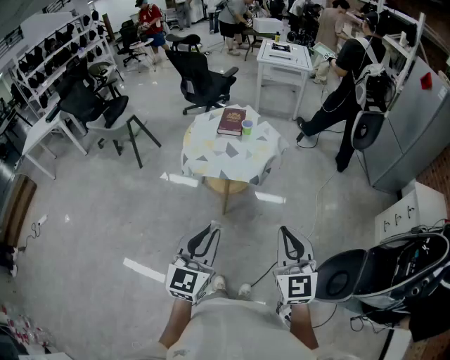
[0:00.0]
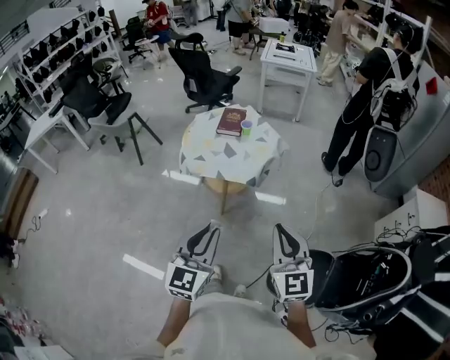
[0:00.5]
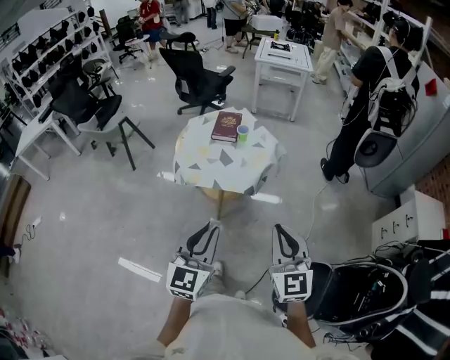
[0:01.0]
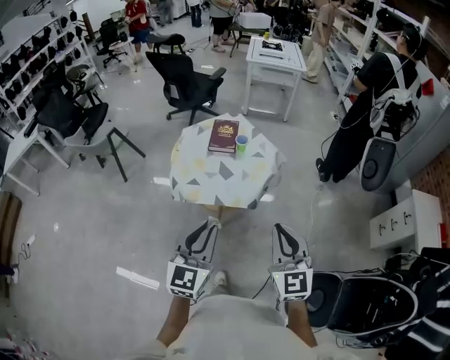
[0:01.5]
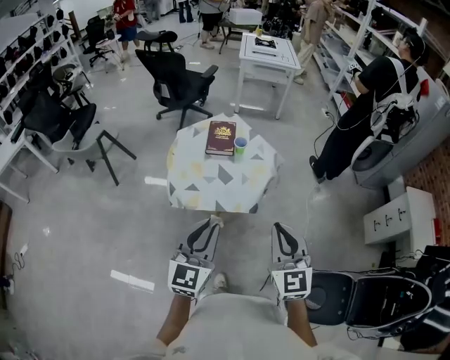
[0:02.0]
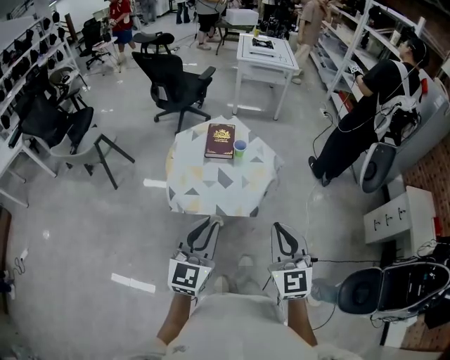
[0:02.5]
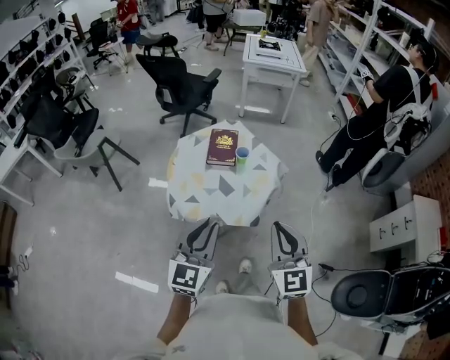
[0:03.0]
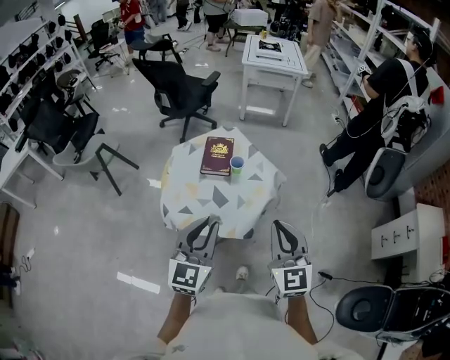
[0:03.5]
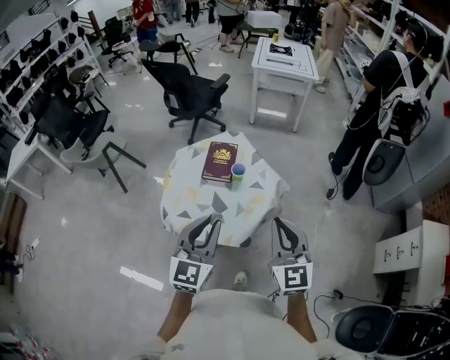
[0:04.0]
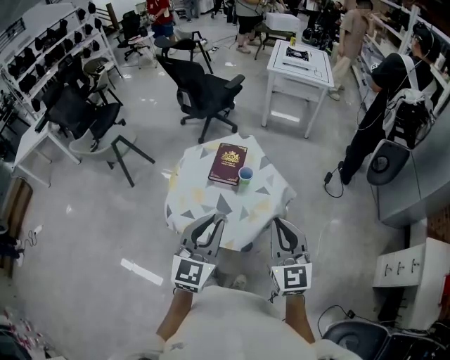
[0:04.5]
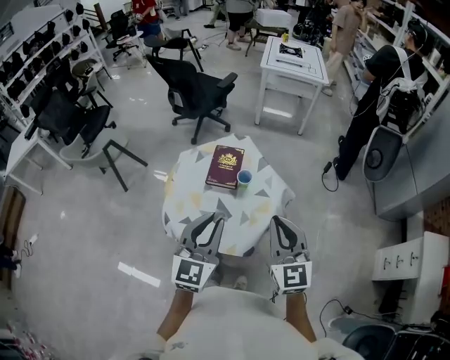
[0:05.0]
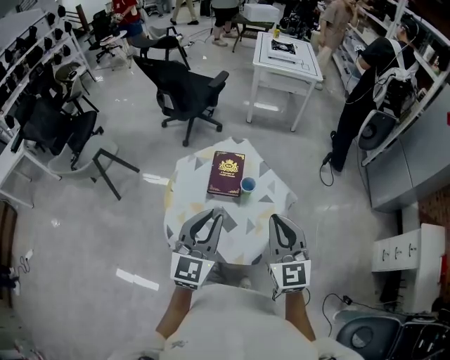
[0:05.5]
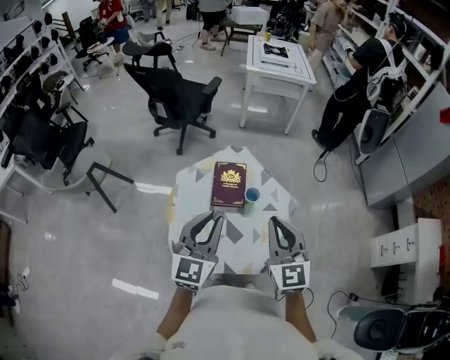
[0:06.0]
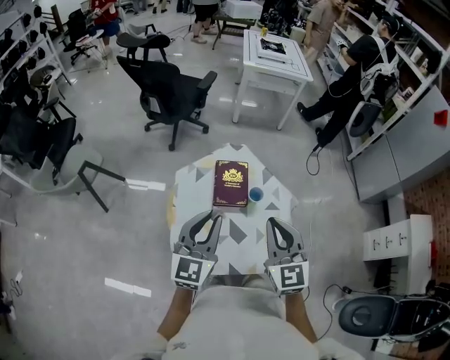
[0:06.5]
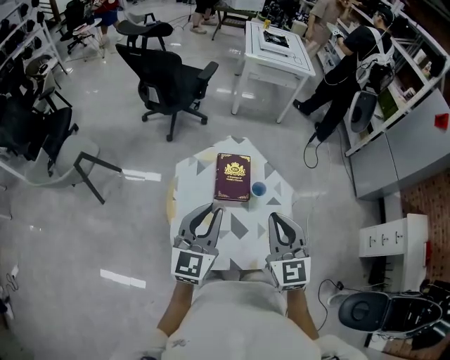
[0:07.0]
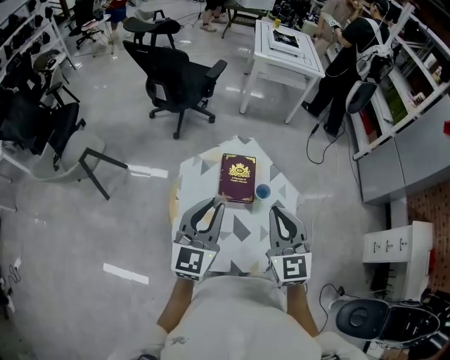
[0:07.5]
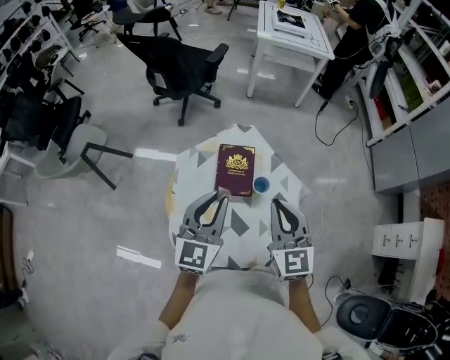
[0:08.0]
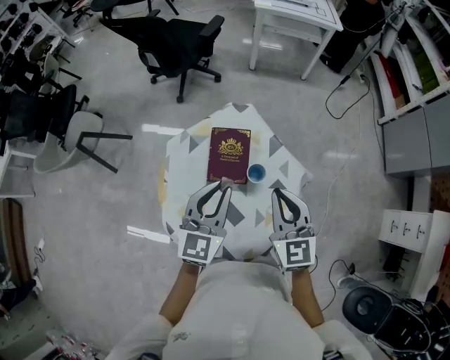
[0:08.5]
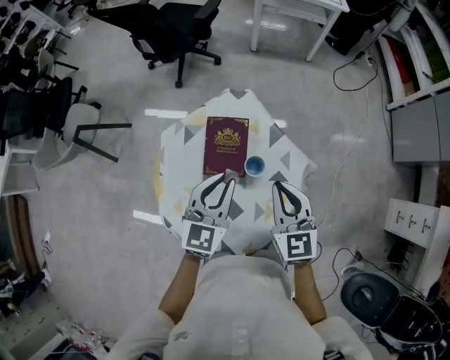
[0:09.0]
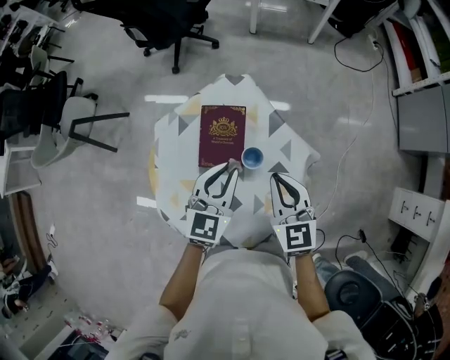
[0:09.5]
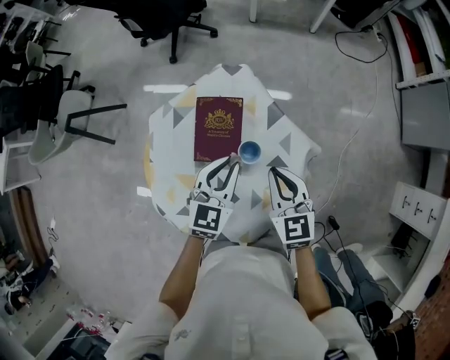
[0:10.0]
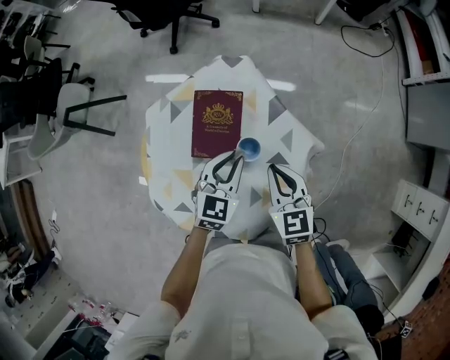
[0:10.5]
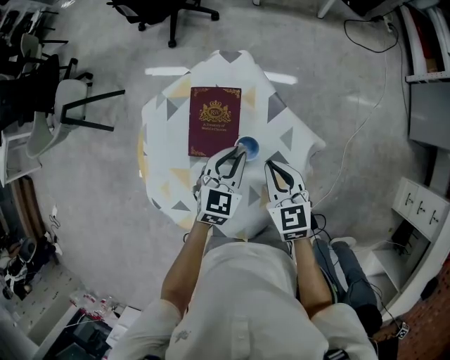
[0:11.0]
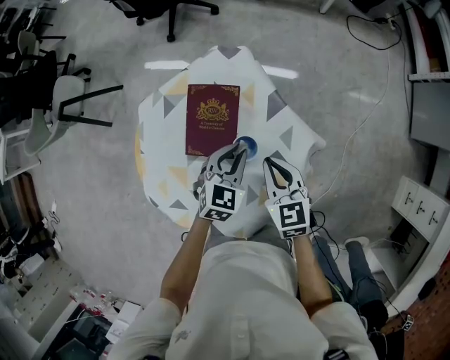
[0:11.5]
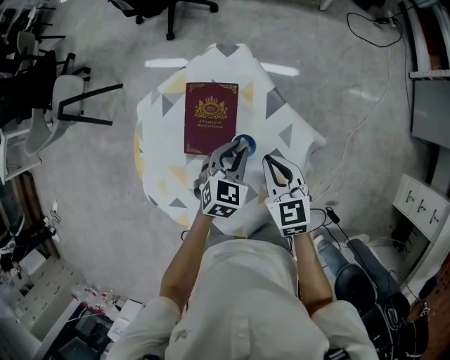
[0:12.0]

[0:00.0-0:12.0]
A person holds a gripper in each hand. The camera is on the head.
0:00.0 to 0:02.0: The right gripper is displaced forward and to the left by about 25 cm, while the left gripper heads forward, covering about 25 cm.
0:02.0 to 0:04.0: The right gripper travels forward by roughly 20 cm. Meanwhile the left gripper heads forward and to the right, covering about 20 cm.
0:04.0 to 0:06.0: Both grippers move forward and to the left, about 20 cm.
0:06.0 to 0:08.0: The two grippers go approximately 10 cm forward.
0:08.0 to 0:10.0: The right gripper travels downward and to the right by roughly 20 cm, and swivels approximately 20 degrees, while the left gripper moves downward, to the right and forward, about 20 cm, and changes its angle by some 20 degrees.
0:10.0 to 0:12.0: The left gripper heads downward, covering roughly 10 cm, and swivels about 20 degrees. The right gripper goes about 5 cm downward.

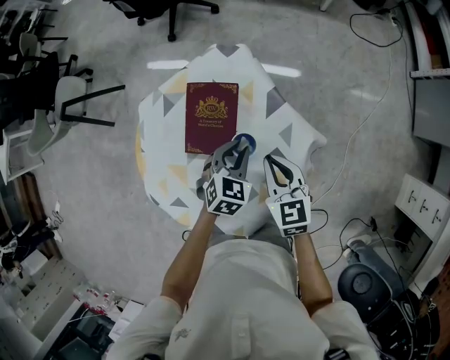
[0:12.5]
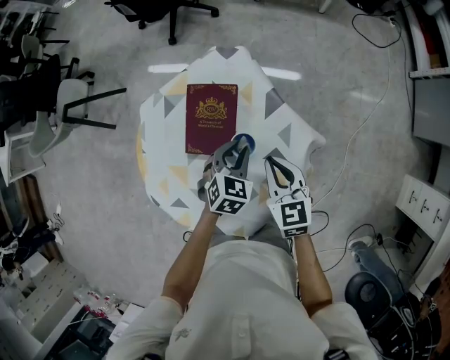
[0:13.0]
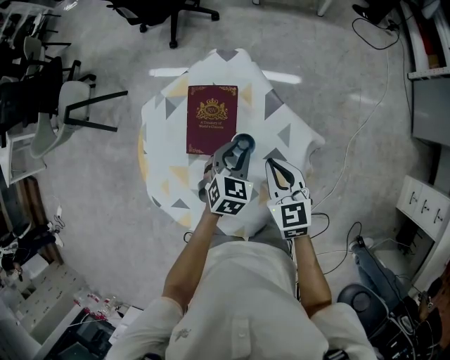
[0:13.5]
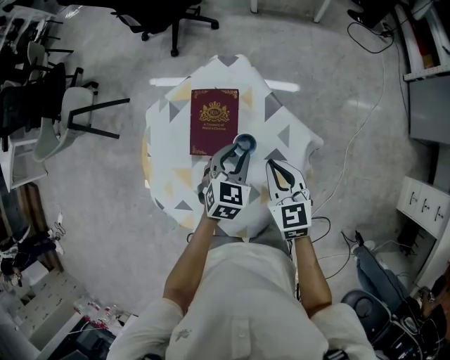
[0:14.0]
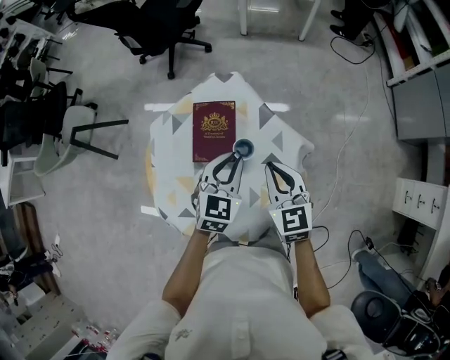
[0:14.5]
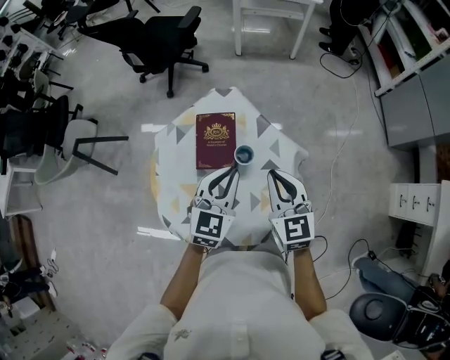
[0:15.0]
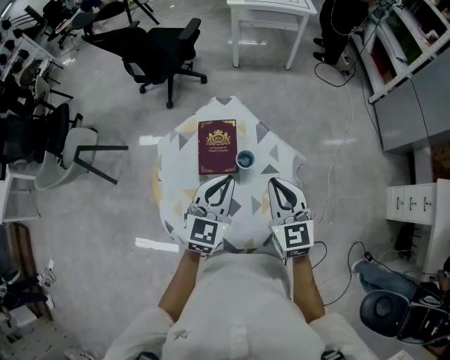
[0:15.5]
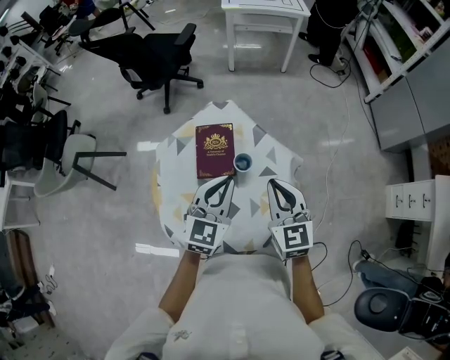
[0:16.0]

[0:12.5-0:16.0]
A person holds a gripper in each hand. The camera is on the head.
0:12.5 to 0:14.5: The grippers both shift upward by about 10 cm.
0:14.5 to 0:16.0: The right gripper heads upward, covering roughly 10 cm, while the left gripper travels upward and backward by about 10 cm.

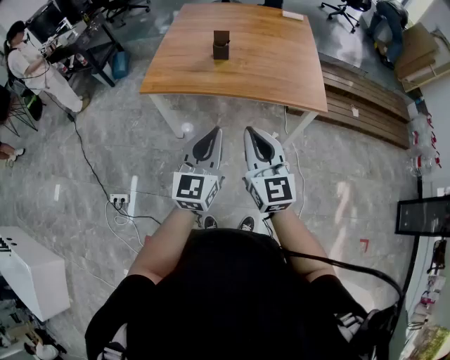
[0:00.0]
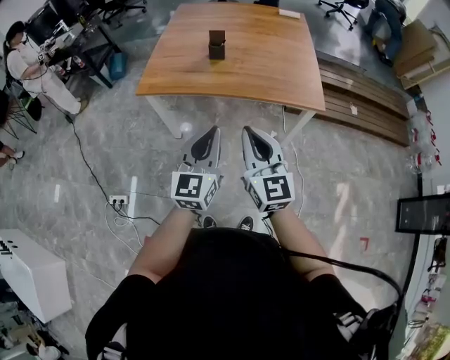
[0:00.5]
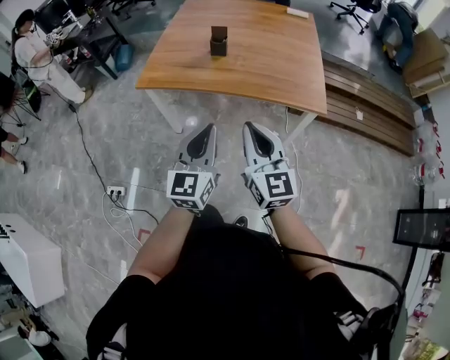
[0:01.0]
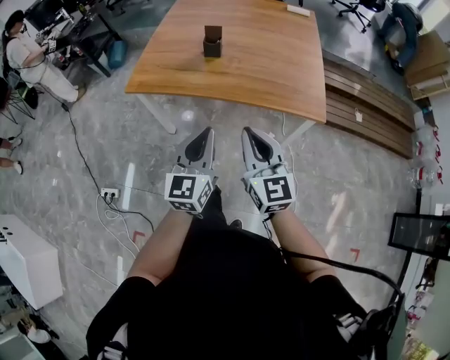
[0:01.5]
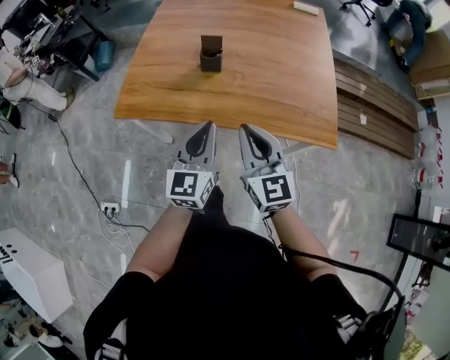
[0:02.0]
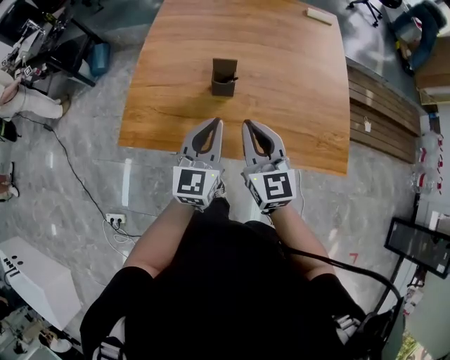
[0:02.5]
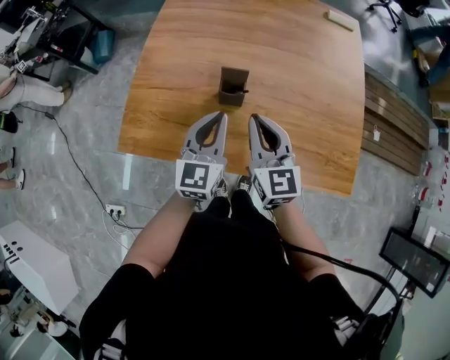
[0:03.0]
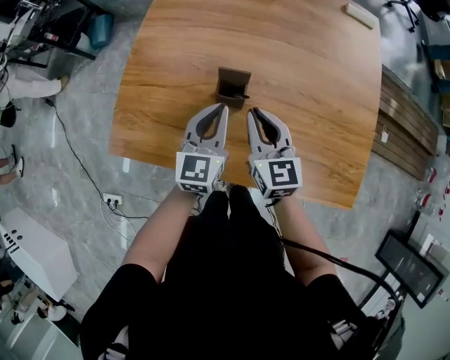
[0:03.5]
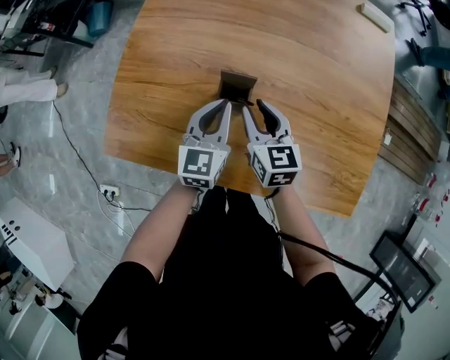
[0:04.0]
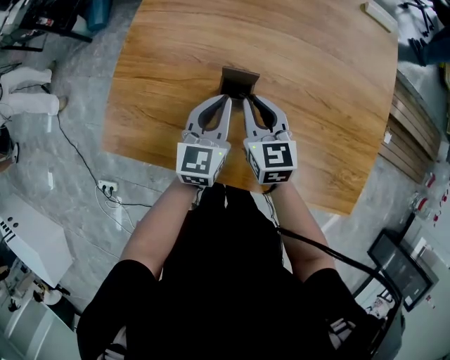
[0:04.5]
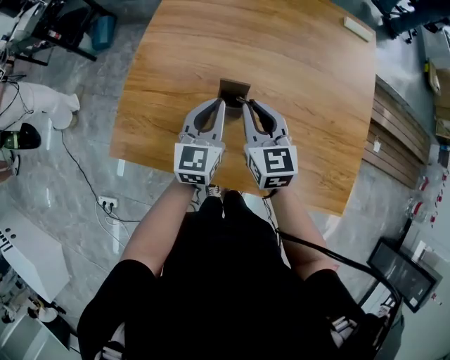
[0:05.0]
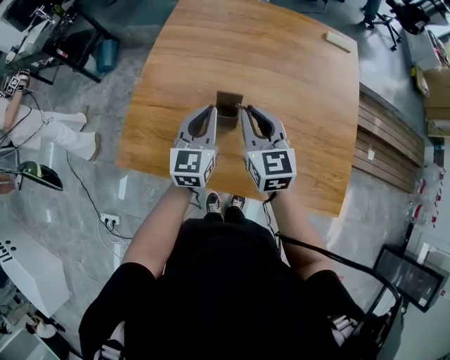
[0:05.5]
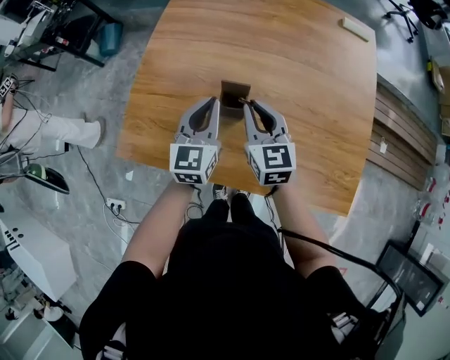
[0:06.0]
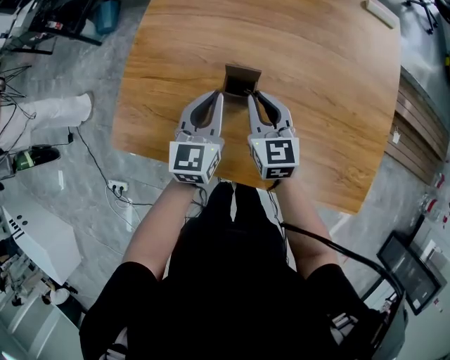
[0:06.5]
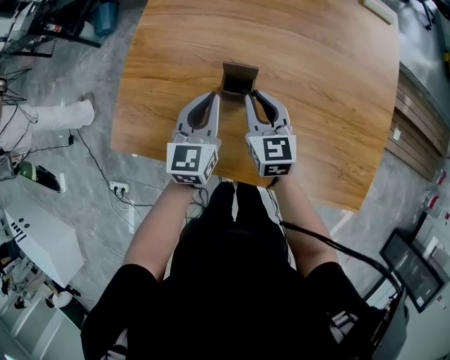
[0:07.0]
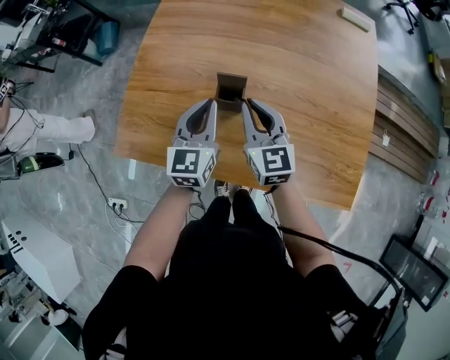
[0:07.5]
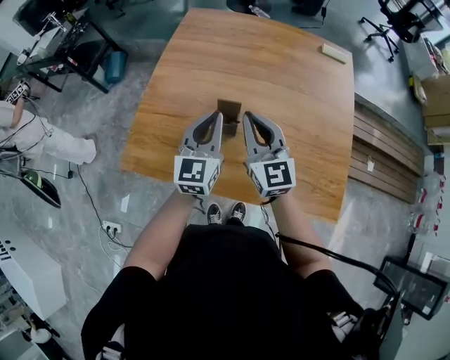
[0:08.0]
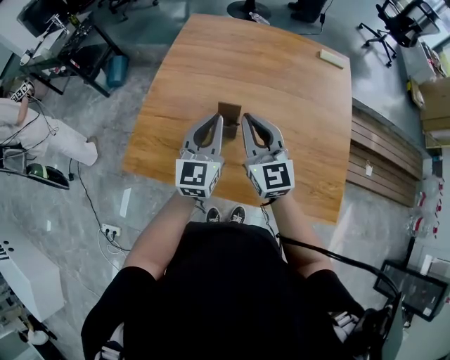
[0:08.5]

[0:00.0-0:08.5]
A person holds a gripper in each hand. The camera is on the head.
0:00.0 to 0:02.0: Both grippers move forward, about 30 cm.
0:02.0 to 0:04.0: Both grippers travel together forward and downward, some 40 cm. The right gripper turns by about 30 degrees.
0:04.0 to 0:06.5: The right gripper goes upward and returns, about 15 cm each way. The left gripper goes upward and returns, some 10 cm each way.
0:06.5 to 0:08.5: Both grippers travel together upward, about 20 cm. The right gripper rotates some 30 degrees.

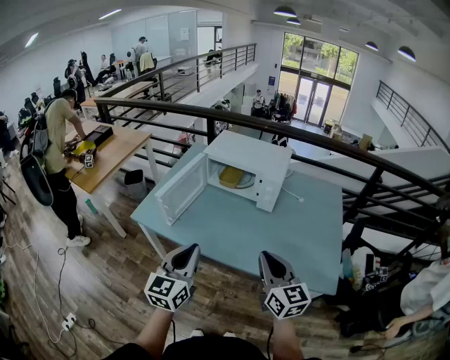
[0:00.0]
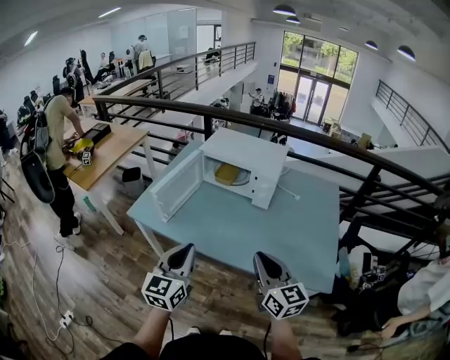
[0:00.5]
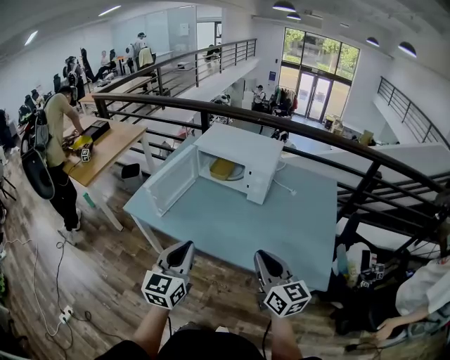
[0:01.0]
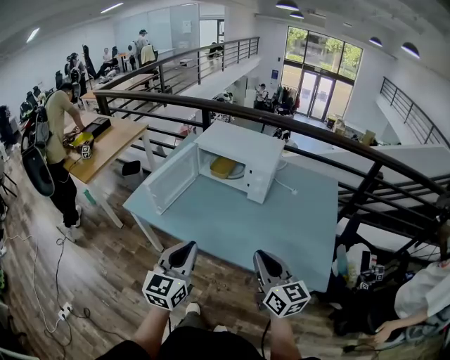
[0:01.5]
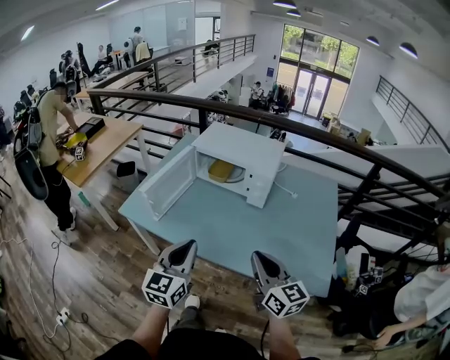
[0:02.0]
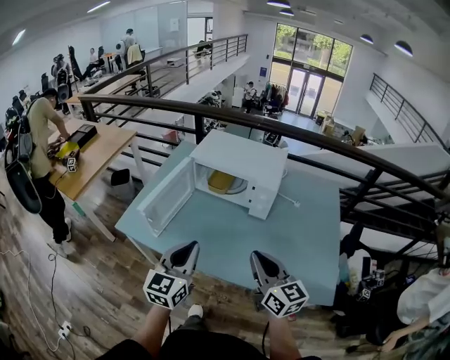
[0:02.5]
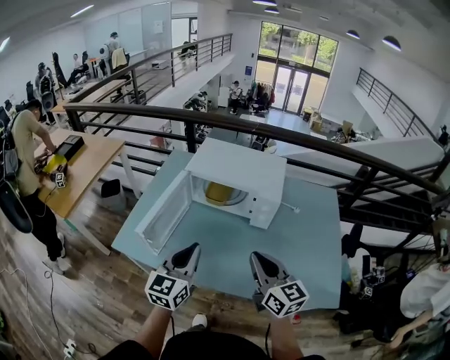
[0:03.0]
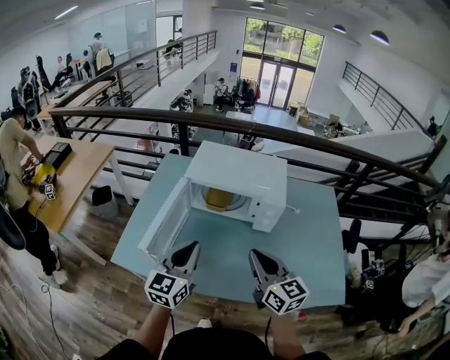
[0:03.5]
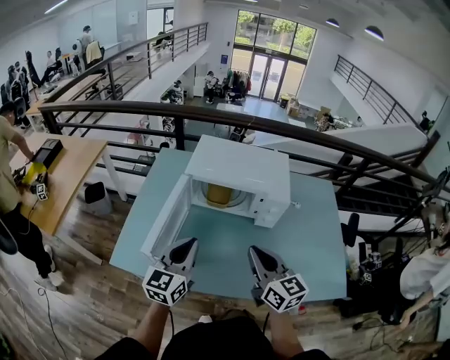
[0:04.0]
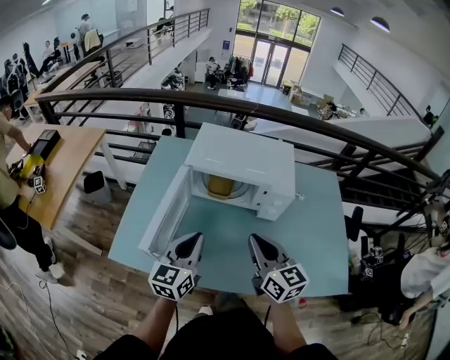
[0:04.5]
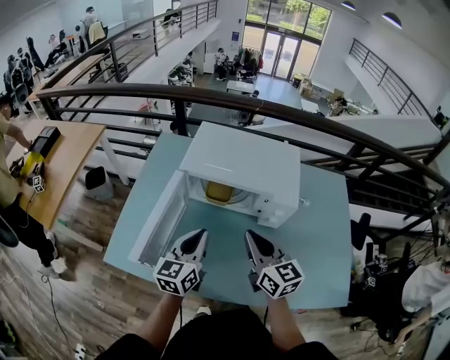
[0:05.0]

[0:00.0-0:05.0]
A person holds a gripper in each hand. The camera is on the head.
0:00.0 to 0:02.5: Both grippers move forward, roughly 10 cm.
0:02.5 to 0:05.0: The left gripper moves forward, some 25 cm; the right gripper goes roughly 25 cm forward and to the left.
